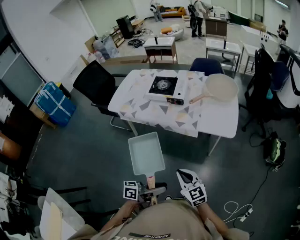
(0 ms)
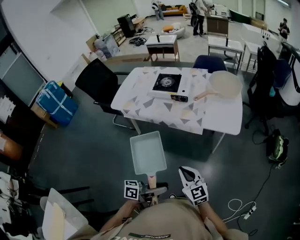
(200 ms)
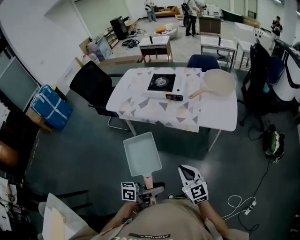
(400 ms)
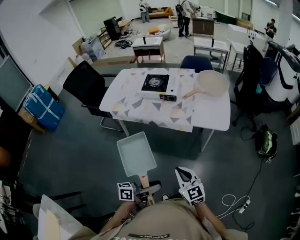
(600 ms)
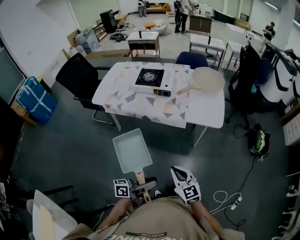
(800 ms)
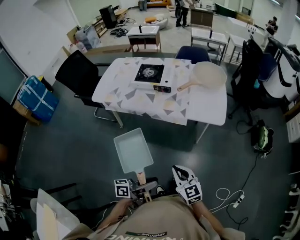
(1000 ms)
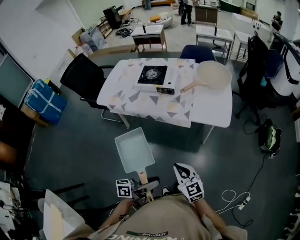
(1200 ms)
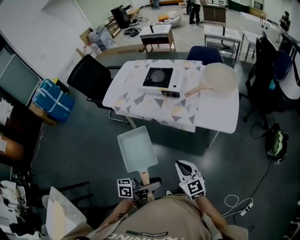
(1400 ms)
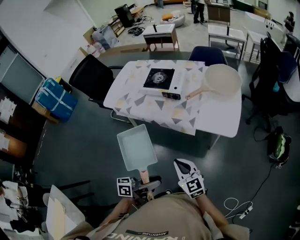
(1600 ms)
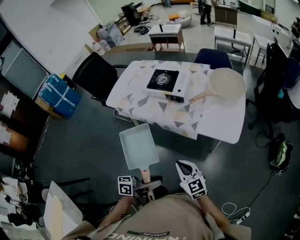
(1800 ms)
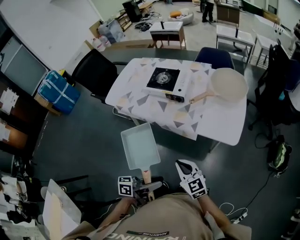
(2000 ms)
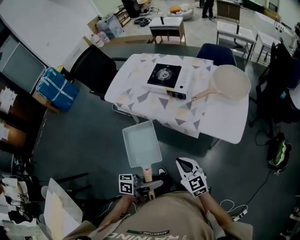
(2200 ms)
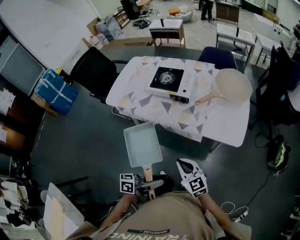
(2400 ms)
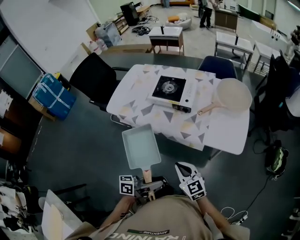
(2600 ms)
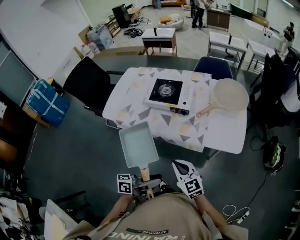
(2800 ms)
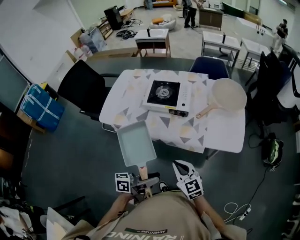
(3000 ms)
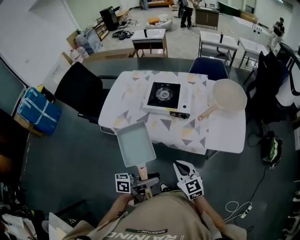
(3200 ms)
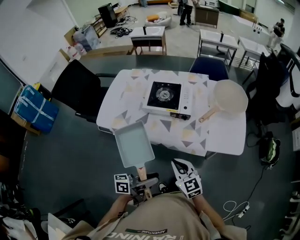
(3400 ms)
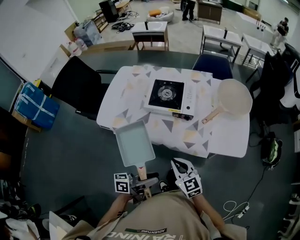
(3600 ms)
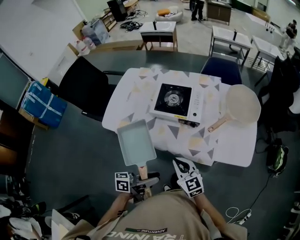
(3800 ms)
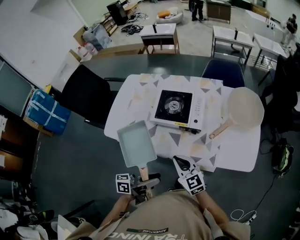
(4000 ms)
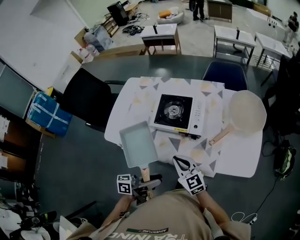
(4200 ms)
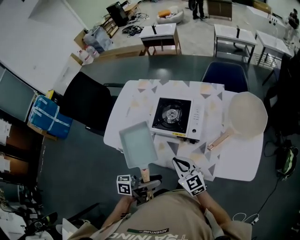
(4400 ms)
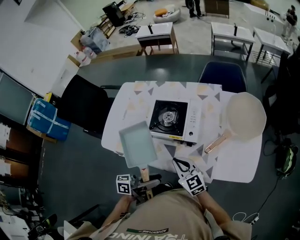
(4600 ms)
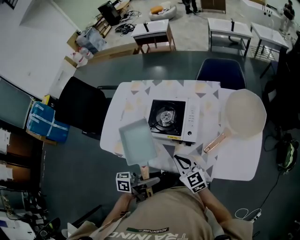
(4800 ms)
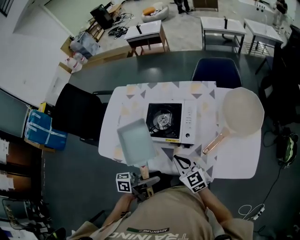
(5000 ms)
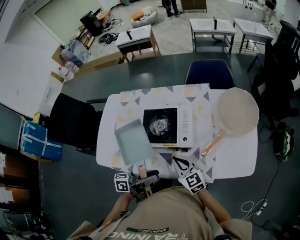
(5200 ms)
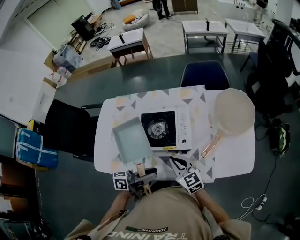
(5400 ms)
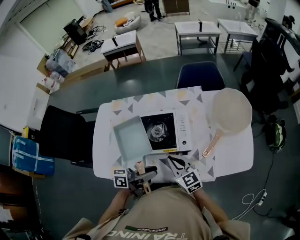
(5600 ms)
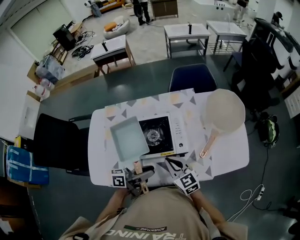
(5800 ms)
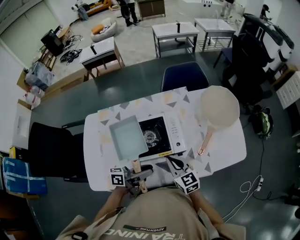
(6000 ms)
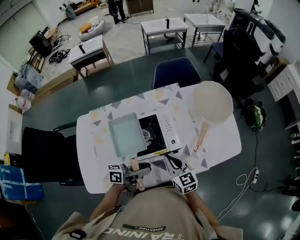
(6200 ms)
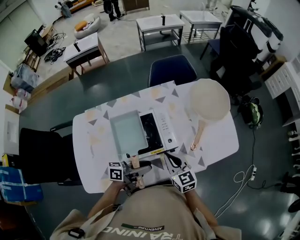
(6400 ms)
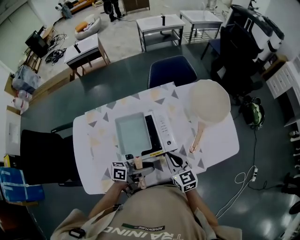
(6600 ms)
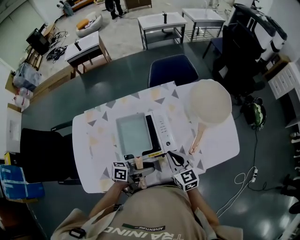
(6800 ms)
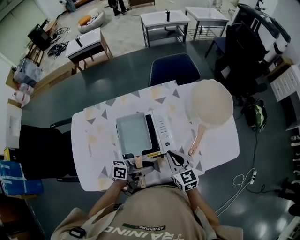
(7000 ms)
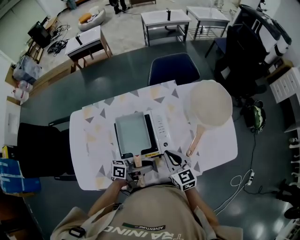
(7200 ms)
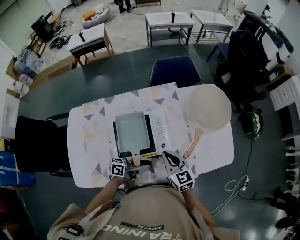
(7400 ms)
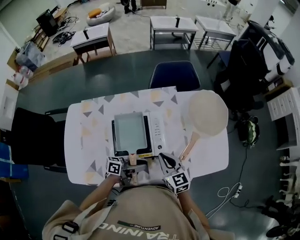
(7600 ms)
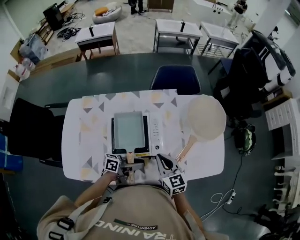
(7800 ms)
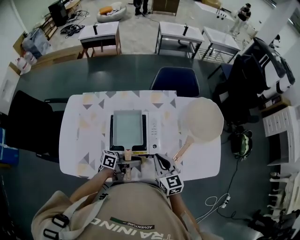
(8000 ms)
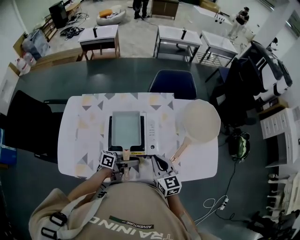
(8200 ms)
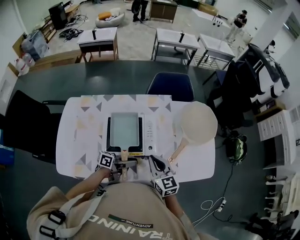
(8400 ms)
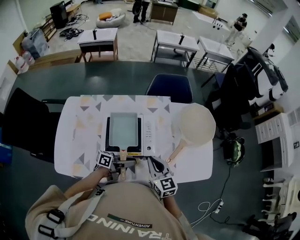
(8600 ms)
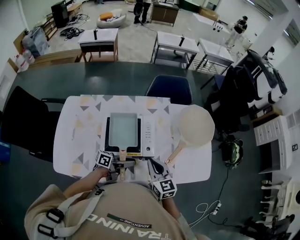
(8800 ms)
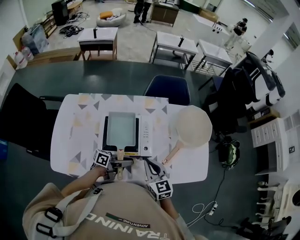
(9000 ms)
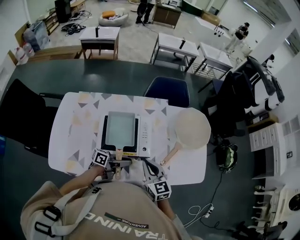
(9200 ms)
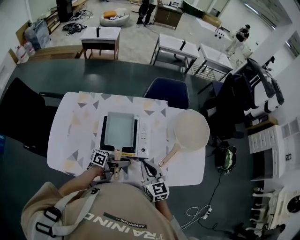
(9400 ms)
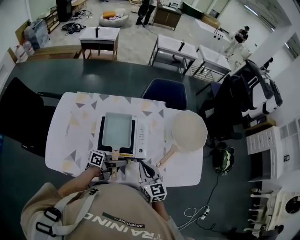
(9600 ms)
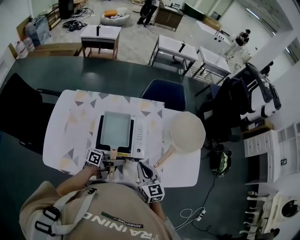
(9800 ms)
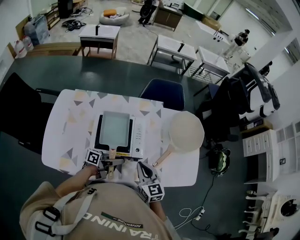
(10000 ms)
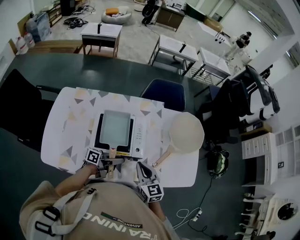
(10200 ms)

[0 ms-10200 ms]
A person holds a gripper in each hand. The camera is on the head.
0 ms to 1400 ms: The right gripper heads forward, covering some 5 cm.
1400 ms to 3000 ms: Both grippers travel together forward and to the left, about 20 cm.
3000 ms to 4400 ms: Both grippers move forward, some 20 cm.
4400 ms to 5800 ms: The left gripper shifts about 20 cm forward and to the left; the right gripper moves forward, roughly 10 cm, and changes its angle by about 20 degrees.
5800 ms to 7200 ms: The right gripper is displaced forward and to the right by some 10 cm; the left gripper moves downward and forward, approximately 10 cm.
7200 ms to 8800 ms: The right gripper moves approximately 5 cm.
8800 ms to 10200 ms: There are only small adjustments of the grippers.

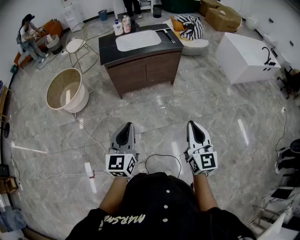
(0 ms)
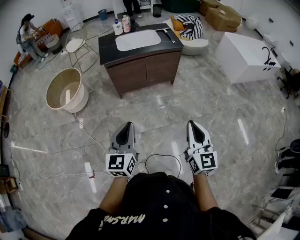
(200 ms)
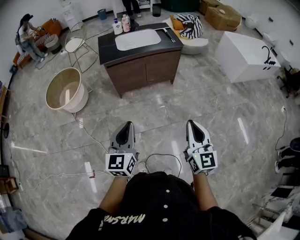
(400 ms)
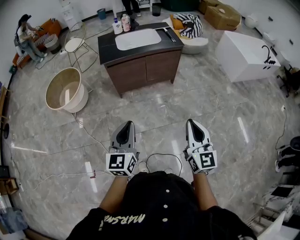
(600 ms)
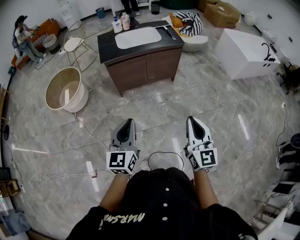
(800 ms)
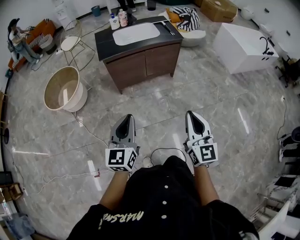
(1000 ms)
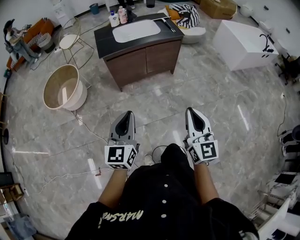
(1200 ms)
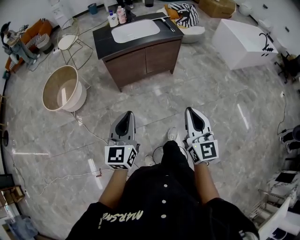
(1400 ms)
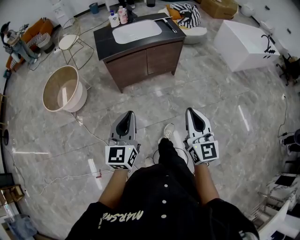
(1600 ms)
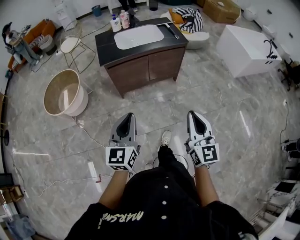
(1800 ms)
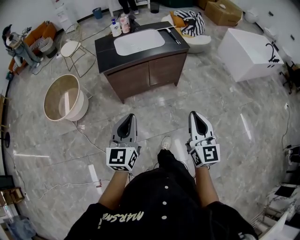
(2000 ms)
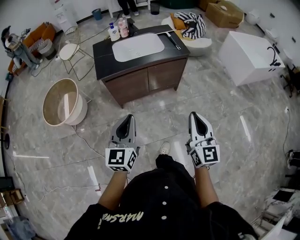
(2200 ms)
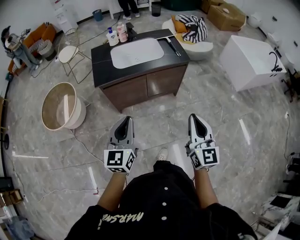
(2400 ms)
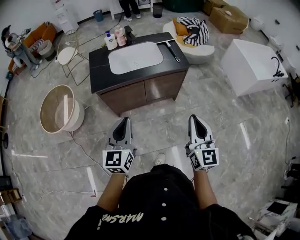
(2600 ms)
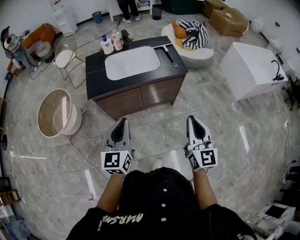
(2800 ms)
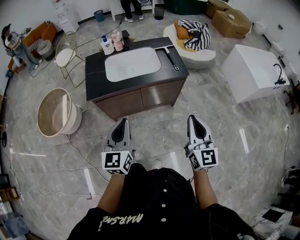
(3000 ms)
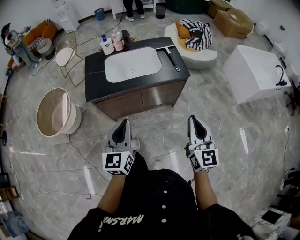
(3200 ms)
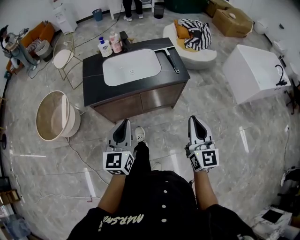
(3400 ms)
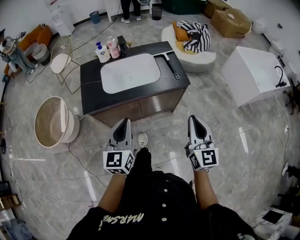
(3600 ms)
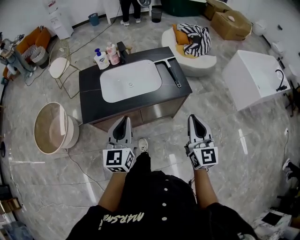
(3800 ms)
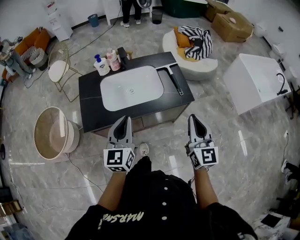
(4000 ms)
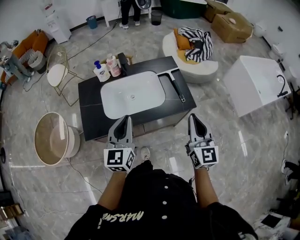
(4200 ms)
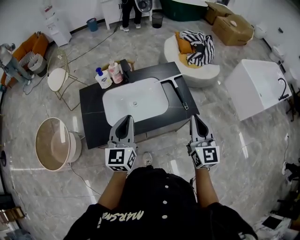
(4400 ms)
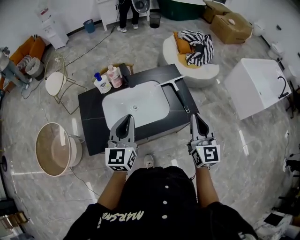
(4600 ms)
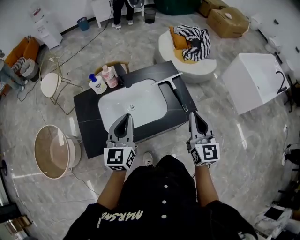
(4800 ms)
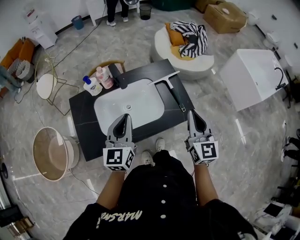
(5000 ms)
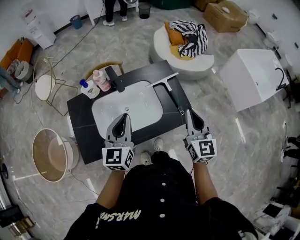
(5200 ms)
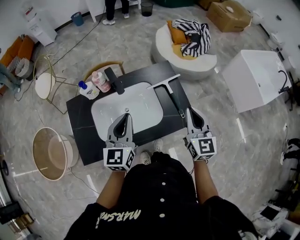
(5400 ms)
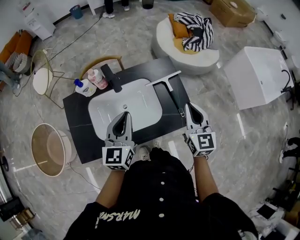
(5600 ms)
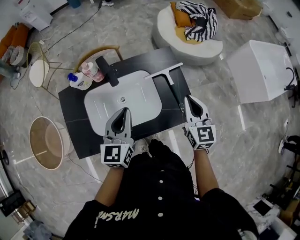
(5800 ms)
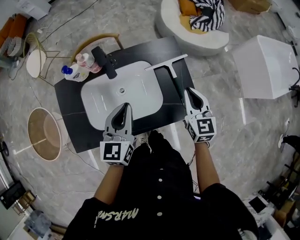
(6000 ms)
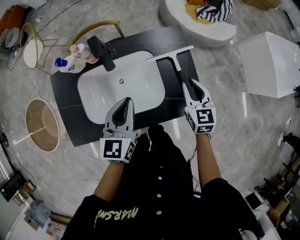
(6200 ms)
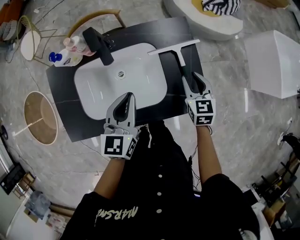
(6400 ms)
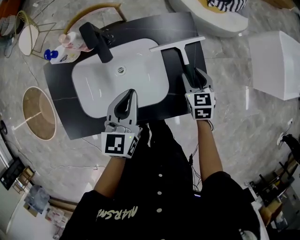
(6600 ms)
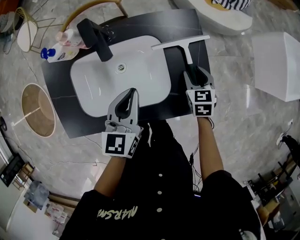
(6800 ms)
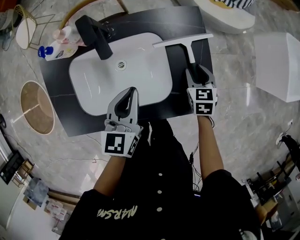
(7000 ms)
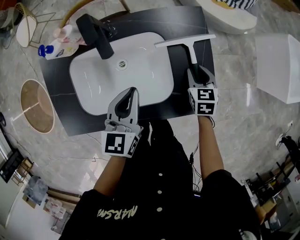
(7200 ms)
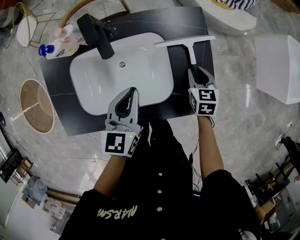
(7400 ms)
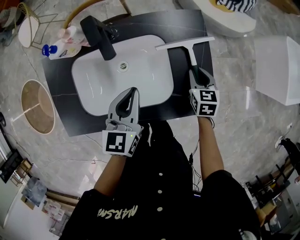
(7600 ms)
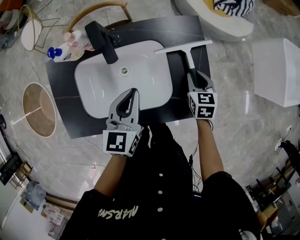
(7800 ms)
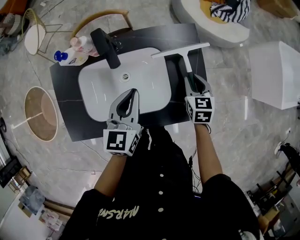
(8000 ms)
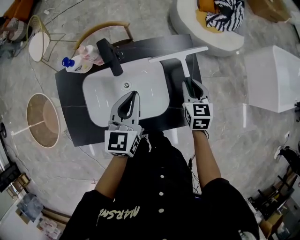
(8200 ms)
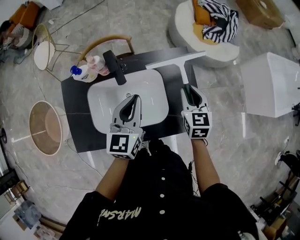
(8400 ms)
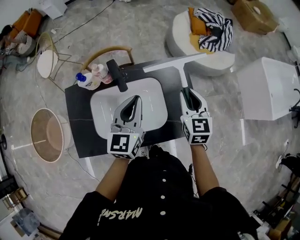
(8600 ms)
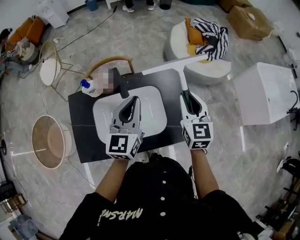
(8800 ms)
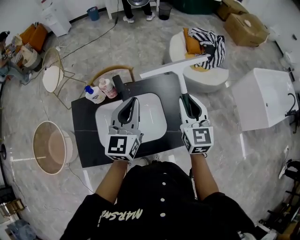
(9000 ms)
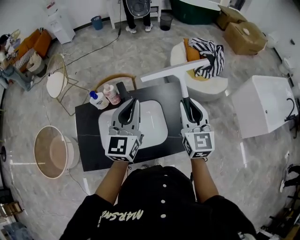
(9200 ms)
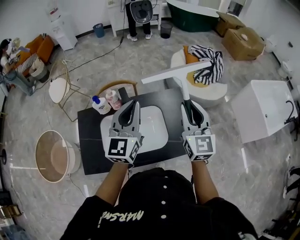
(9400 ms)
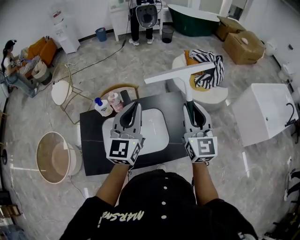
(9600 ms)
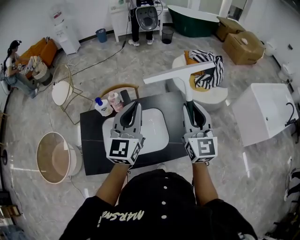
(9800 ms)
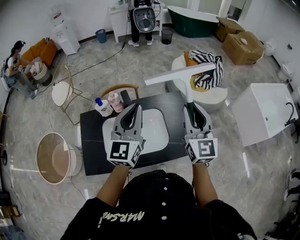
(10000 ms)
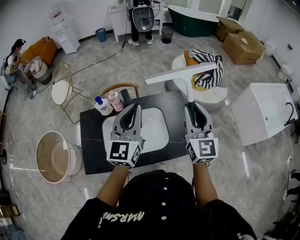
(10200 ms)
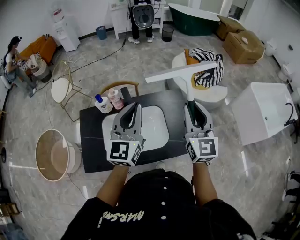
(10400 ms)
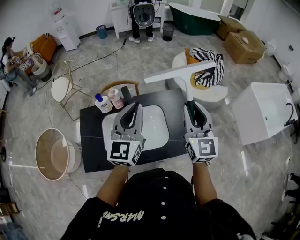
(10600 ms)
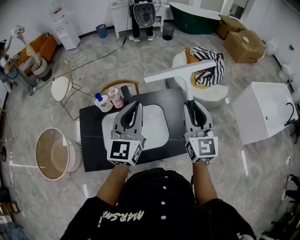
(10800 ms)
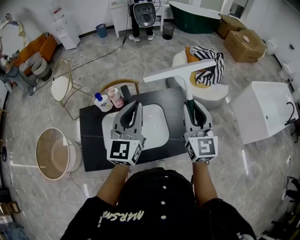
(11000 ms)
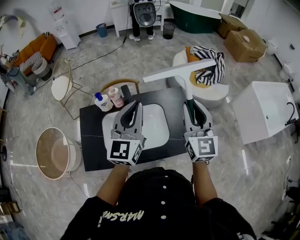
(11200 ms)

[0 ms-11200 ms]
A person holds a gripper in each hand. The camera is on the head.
0 ms to 1600 ms: The right gripper shifts some 10 cm to the left and forward. Meanwhile the left gripper moves forward, about 5 cm.
1600 ms to 3200 ms: Both grippers travel together forward, about 40 cm.
3200 ms to 4800 ms: The two grippers go roughly 40 cm forward.
4800 ms to 6400 ms: The right gripper is displaced downward and forward by roughly 35 cm, points its fingers approximately 40 degrees further downward, and opens; the left gripper goes about 20 cm downward, forward and to the right.
6400 ms to 8000 ms: The right gripper goes downward and returns, some 10 cm each way.
8000 ms to 9600 ms: The grippers both shift upward by approximately 30 cm. The left gripper turns by approximately 30 degrees. The right gripper tips its fingers upward by approximately 50 degrees.
9600 ms to 11200 ms: The grippers move only a little.

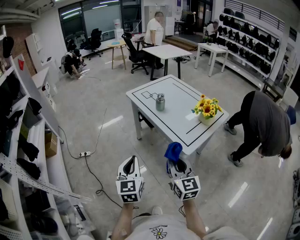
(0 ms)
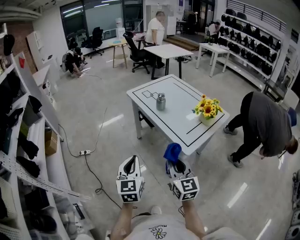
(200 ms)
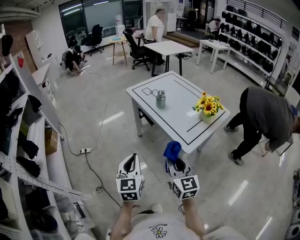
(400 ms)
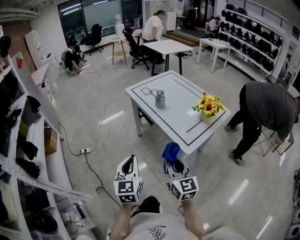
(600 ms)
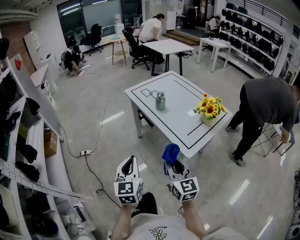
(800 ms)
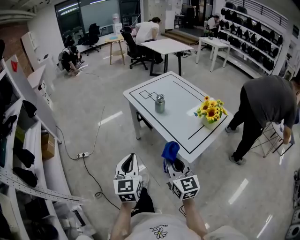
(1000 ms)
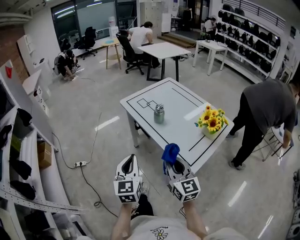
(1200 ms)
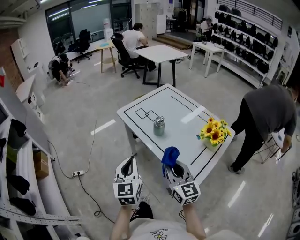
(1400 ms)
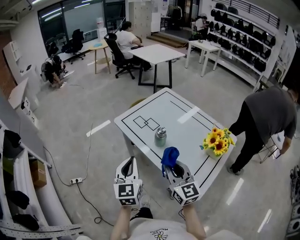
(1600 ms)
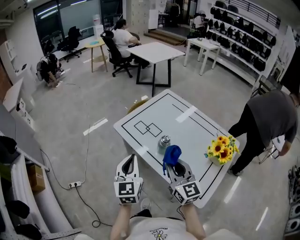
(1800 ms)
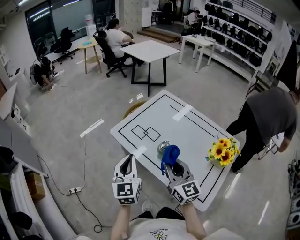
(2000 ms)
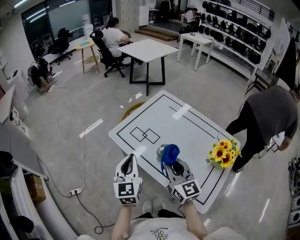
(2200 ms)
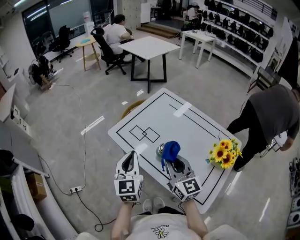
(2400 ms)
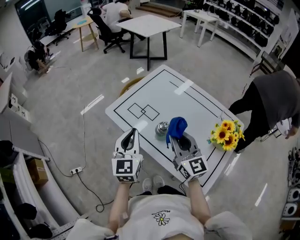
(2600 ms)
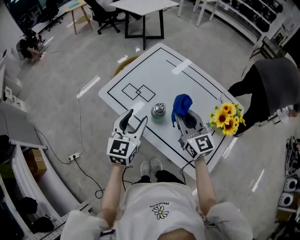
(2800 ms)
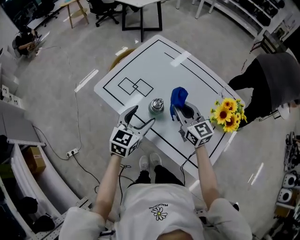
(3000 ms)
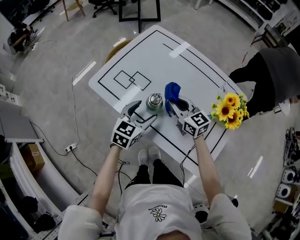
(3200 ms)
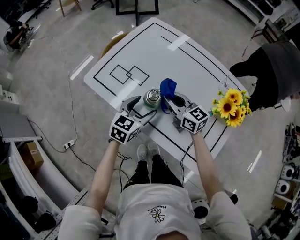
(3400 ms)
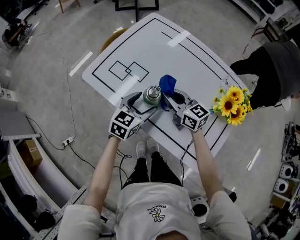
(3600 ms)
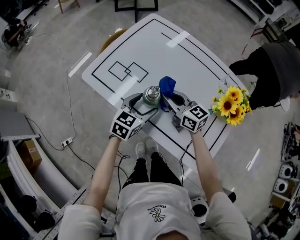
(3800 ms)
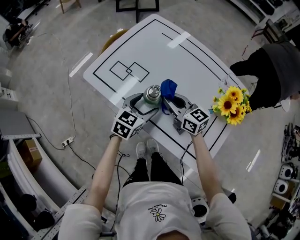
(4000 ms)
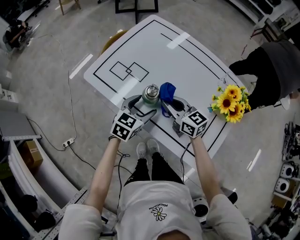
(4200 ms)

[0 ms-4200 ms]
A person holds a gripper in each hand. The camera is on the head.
0 ms to 1400 ms: Both grippers move forward, about 25 cm.
1400 ms to 2800 ms: The two grippers go some 25 cm forward. The left gripper turns by about 30 degrees, and opens its fingers.
2800 ms to 4200 ms: The left gripper goes about 15 cm downward and to the right, rotates roughly 30 degrees, and opens its fingers, while the right gripper is displaced downward by some 15 cm, and swivels roughly 30 degrees.
